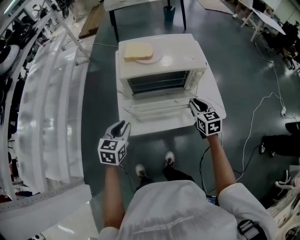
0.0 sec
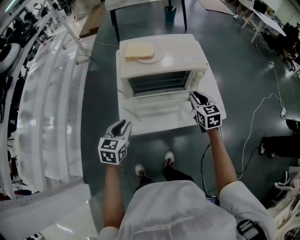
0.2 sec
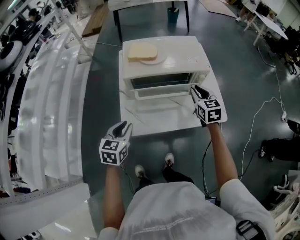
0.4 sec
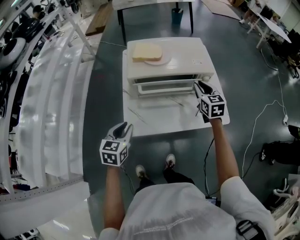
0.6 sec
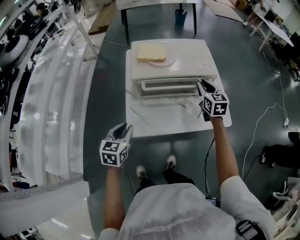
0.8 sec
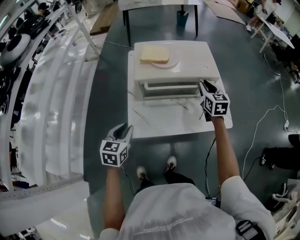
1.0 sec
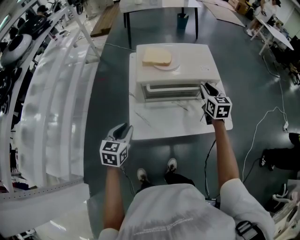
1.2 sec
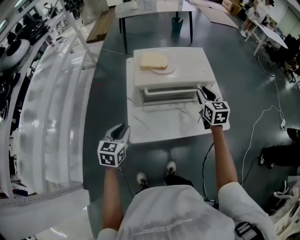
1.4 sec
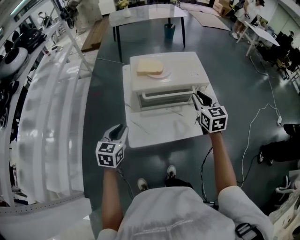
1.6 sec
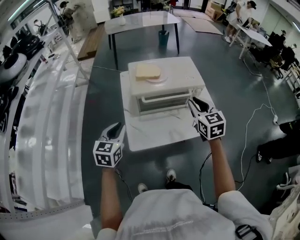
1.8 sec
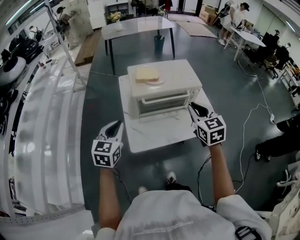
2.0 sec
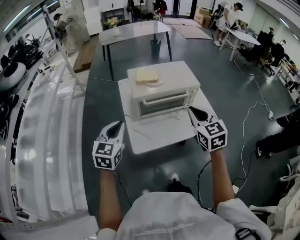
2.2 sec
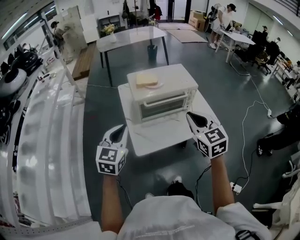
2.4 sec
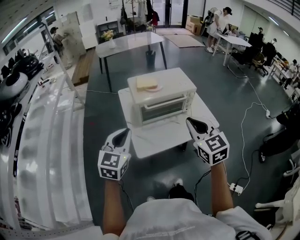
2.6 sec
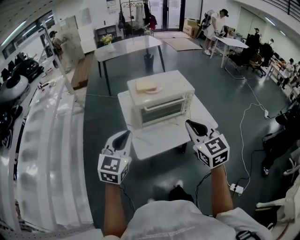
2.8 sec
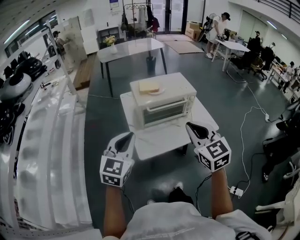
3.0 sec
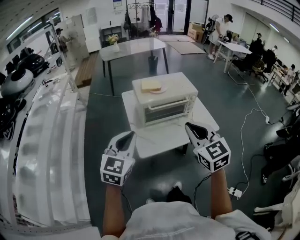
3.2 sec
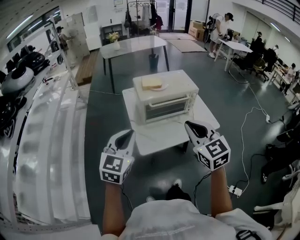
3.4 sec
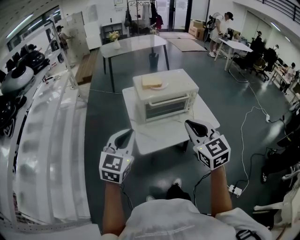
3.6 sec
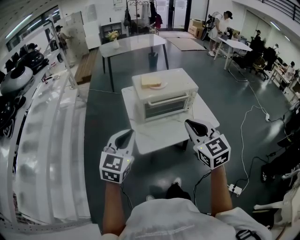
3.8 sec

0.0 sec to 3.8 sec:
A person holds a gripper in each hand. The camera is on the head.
0.0 sec to 1.2 sec: The right gripper heads forward and upward, covering about 15 cm, while the left gripper is displaced to the left by approximately 5 cm.
1.2 sec to 2.6 sec: The left gripper goes about 15 cm upward, and rotates approximately 30 degrees. The right gripper heads backward, upward and to the left, covering some 35 cm.
2.6 sec to 3.8 sec: The left gripper heads backward, covering about 5 cm. The right gripper shifts by some 5 cm.

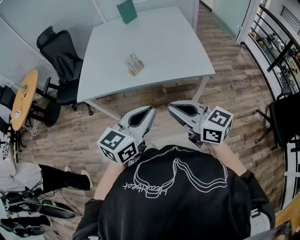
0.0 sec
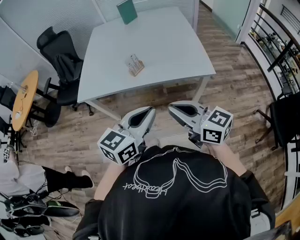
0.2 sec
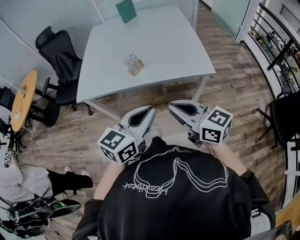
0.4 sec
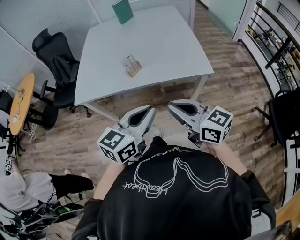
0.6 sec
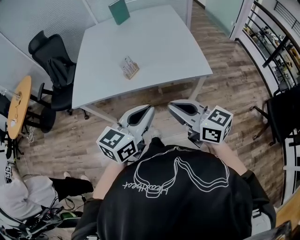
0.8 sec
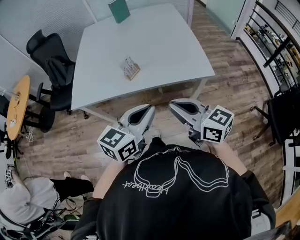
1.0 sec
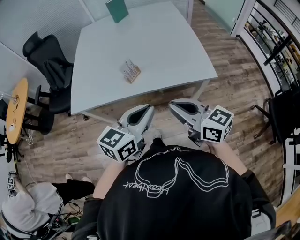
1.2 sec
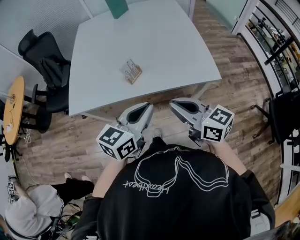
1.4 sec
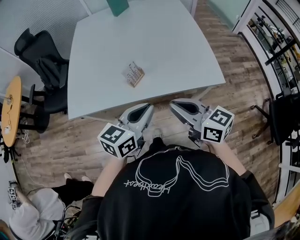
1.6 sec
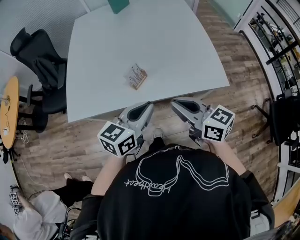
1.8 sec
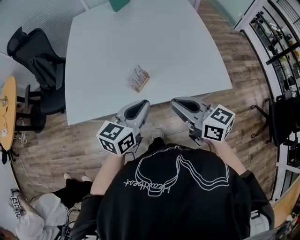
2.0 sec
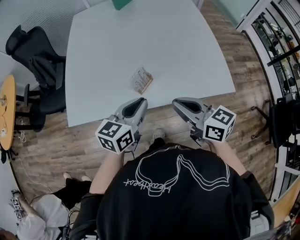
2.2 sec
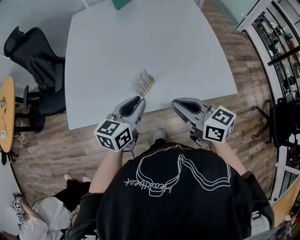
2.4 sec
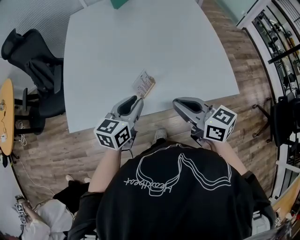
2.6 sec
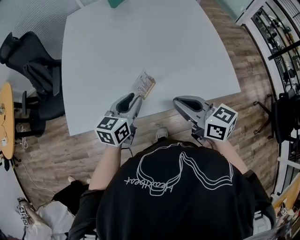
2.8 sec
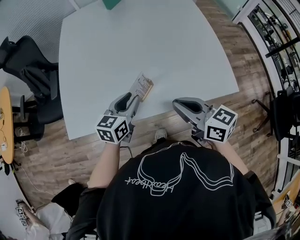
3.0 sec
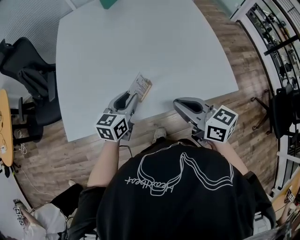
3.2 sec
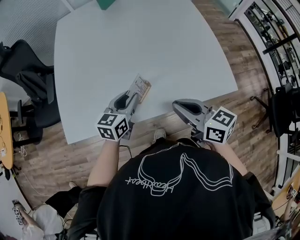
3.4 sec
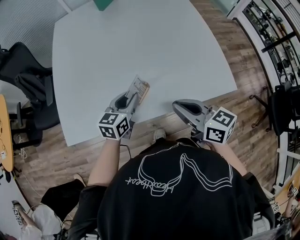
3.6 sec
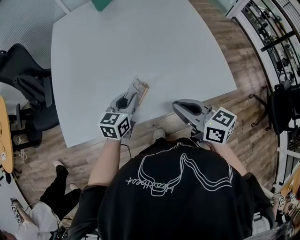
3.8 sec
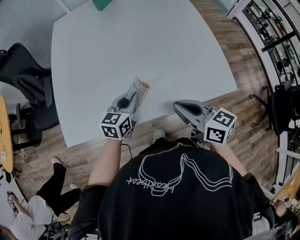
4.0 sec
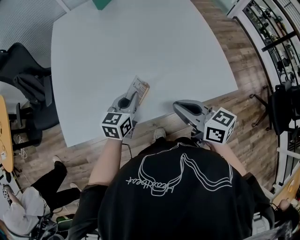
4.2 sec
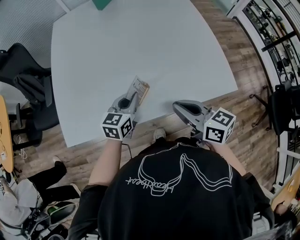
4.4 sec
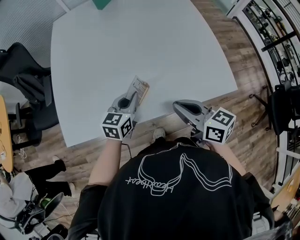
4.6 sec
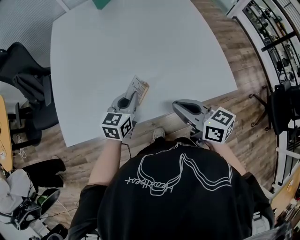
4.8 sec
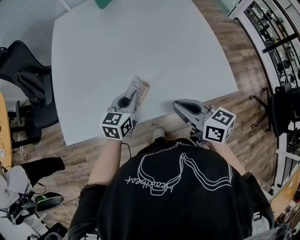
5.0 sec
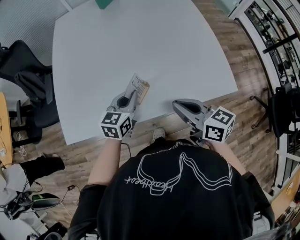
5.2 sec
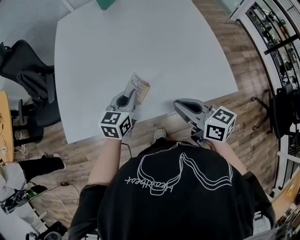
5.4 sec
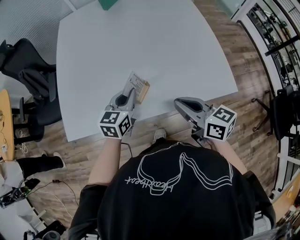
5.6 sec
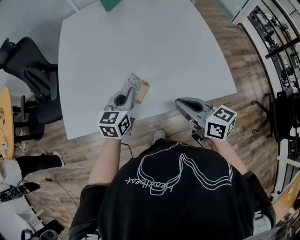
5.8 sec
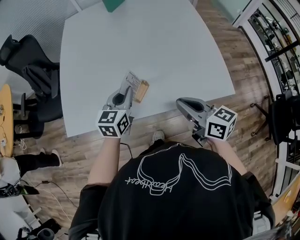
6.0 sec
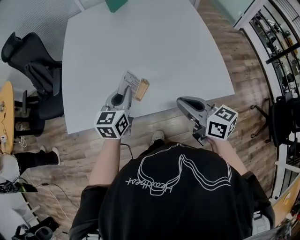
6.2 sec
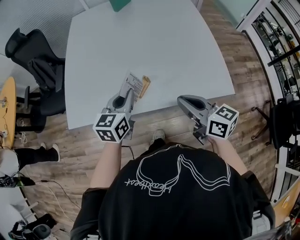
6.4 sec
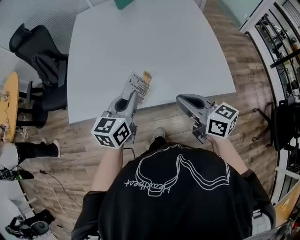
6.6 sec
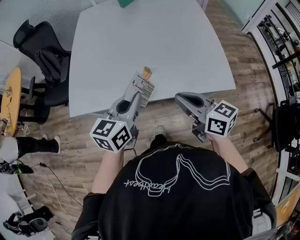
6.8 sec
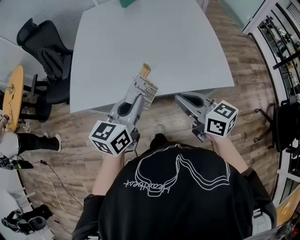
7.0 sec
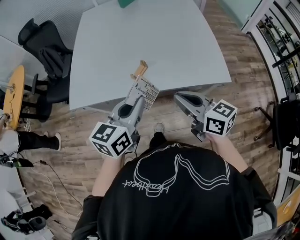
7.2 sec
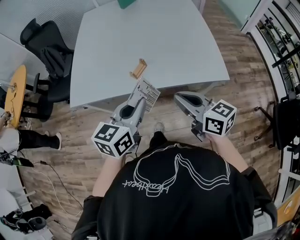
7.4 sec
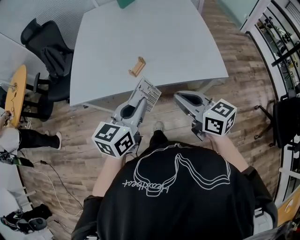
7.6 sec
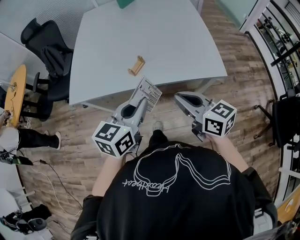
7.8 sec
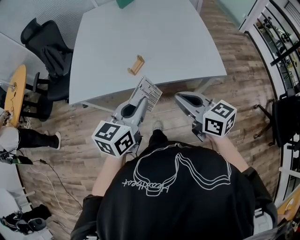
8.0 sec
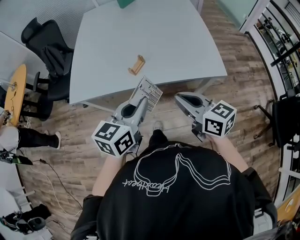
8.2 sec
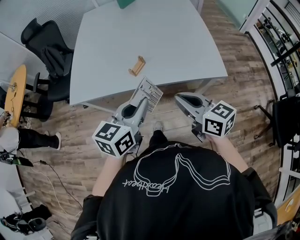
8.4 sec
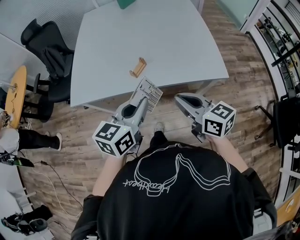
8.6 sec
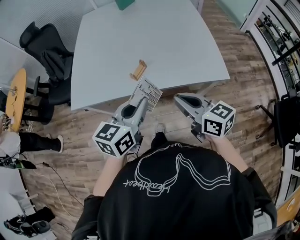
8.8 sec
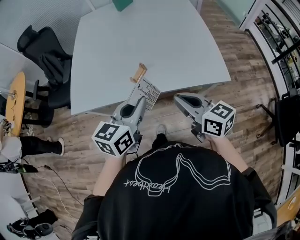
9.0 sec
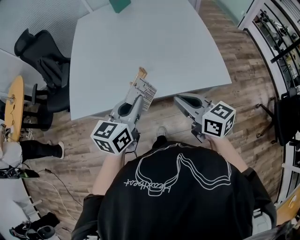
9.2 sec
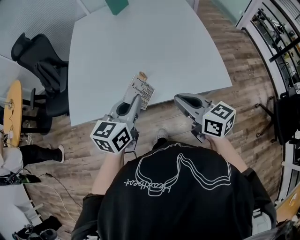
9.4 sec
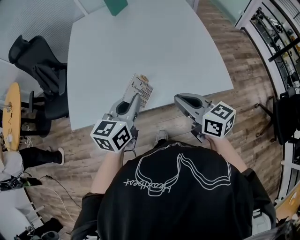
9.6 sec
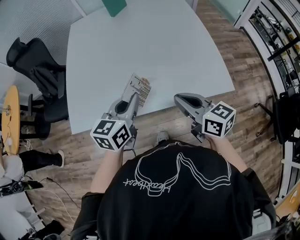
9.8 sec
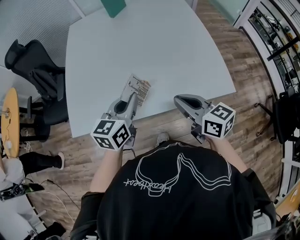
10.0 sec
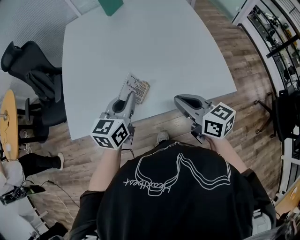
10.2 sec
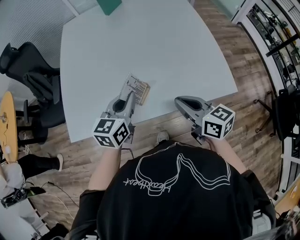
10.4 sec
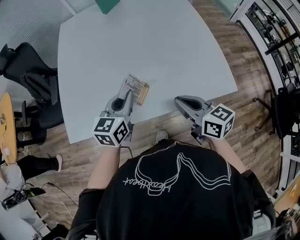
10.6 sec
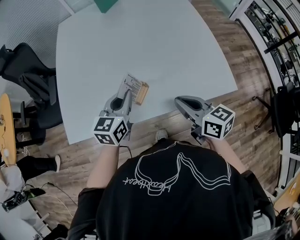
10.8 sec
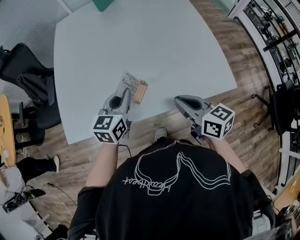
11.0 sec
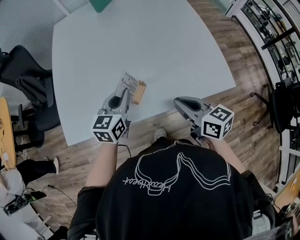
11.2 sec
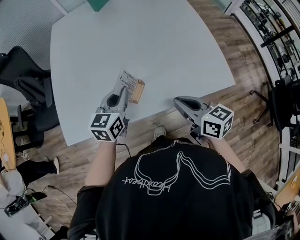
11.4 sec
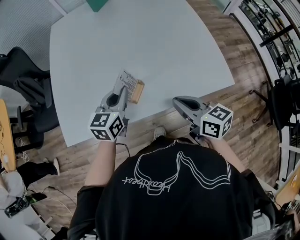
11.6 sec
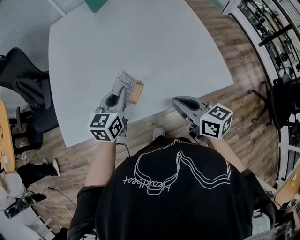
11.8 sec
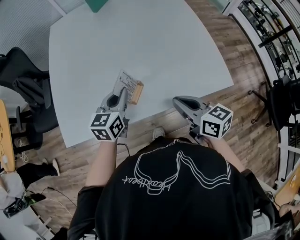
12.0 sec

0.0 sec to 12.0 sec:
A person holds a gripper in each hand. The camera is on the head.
0.0 sec to 1.6 sec: Both grippers move forward, about 20 cm.
1.6 sec to 3.0 sec: The left gripper moves forward, downward and to the left, roughly 25 cm, and opens its fingers, while the right gripper goes some 15 cm forward.
3.0 sec to 4.4 sec: The left gripper ends up about 5 cm from where it was, and closes.
4.4 sec to 6.0 sec: The left gripper shifts approximately 5 cm upward.
6.0 sec to 7.6 sec: The left gripper moves backward, roughly 25 cm. Meanwhile the right gripper goes about 15 cm backward.
7.6 sec to 9.0 sec: The left gripper shifts approximately 5 cm forward.
9.0 sec to 10.4 sec: The two grippers go some 15 cm forward.
10.4 sec to 12.0 sec: The left gripper moves roughly 5 cm.

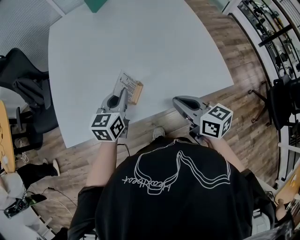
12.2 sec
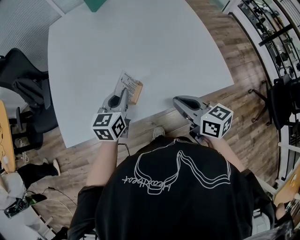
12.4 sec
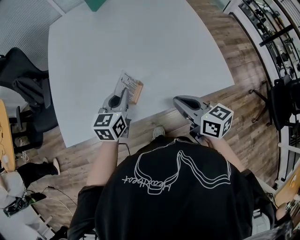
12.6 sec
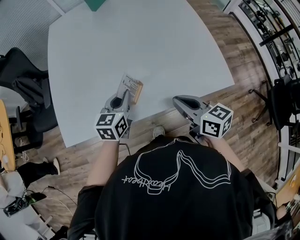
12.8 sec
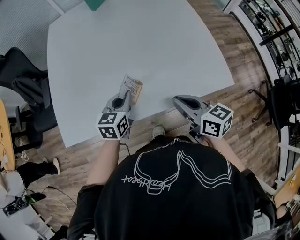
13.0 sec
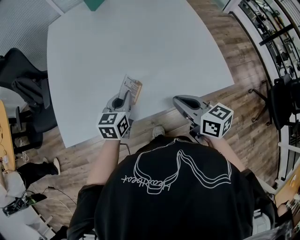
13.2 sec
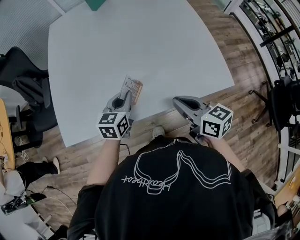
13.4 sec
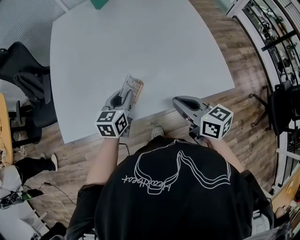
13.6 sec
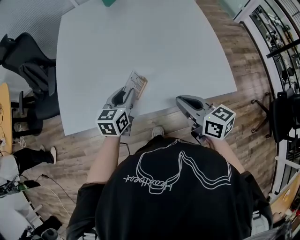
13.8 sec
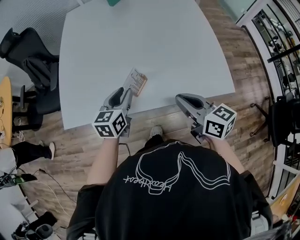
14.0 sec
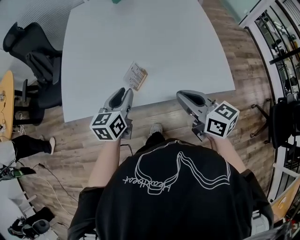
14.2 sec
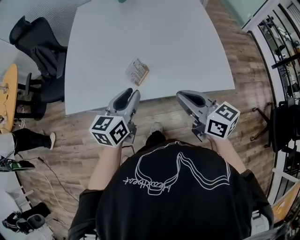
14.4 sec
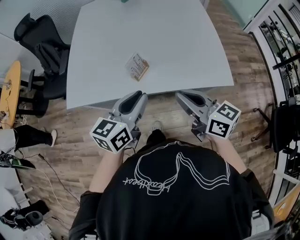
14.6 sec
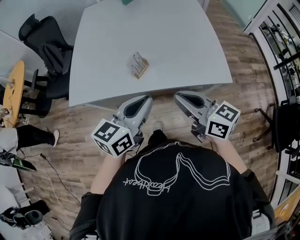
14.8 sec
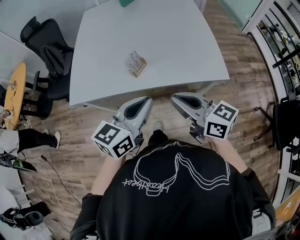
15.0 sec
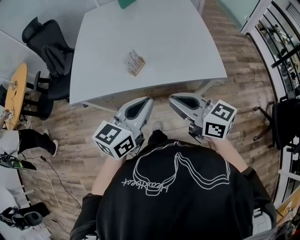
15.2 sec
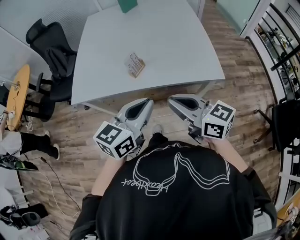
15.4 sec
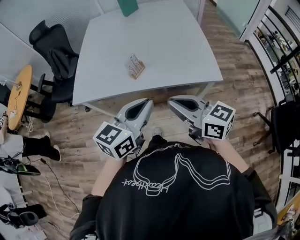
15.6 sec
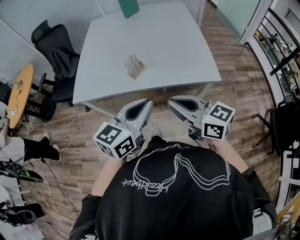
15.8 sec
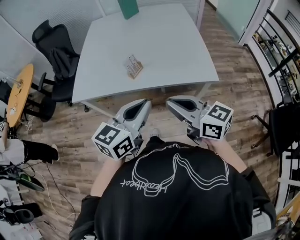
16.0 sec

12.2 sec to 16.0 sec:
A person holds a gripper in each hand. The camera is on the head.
12.2 sec to 13.4 sec: There are only small adjustments of the grippers.
13.4 sec to 14.8 sec: The right gripper shifts about 15 cm backward and upward, and changes its angle by some 20 degrees; the left gripper goes about 30 cm backward and upward, and opens, then closes once more.
14.8 sec to 16.0 sec: The right gripper heads backward, covering some 10 cm. Meanwhile the left gripper shifts some 10 cm backward and upward.

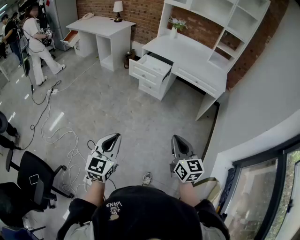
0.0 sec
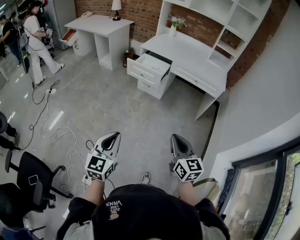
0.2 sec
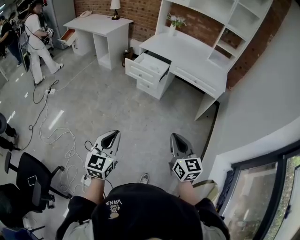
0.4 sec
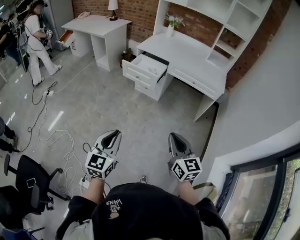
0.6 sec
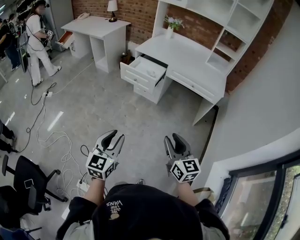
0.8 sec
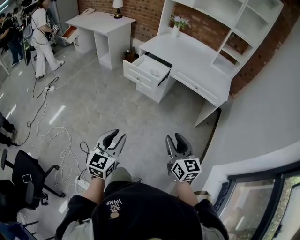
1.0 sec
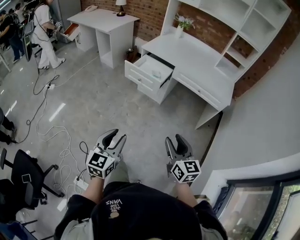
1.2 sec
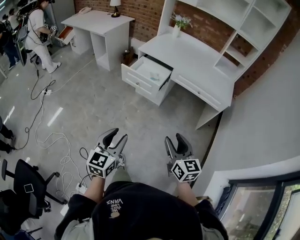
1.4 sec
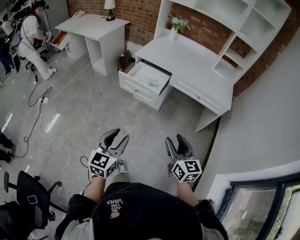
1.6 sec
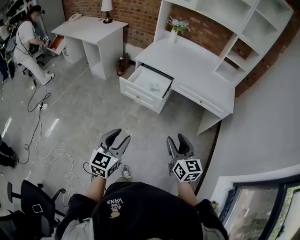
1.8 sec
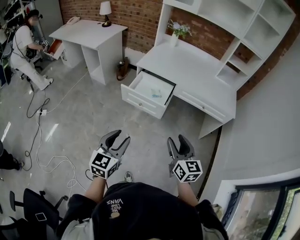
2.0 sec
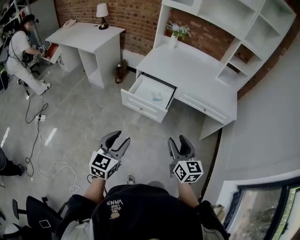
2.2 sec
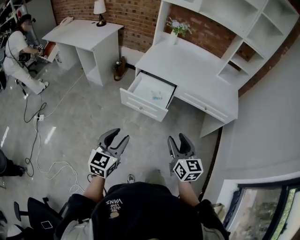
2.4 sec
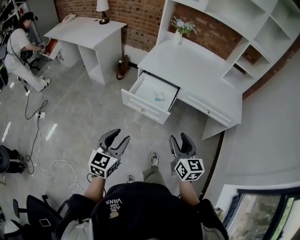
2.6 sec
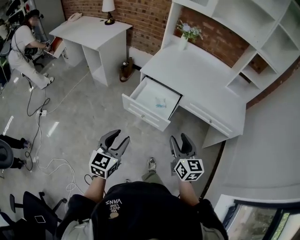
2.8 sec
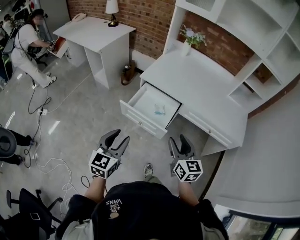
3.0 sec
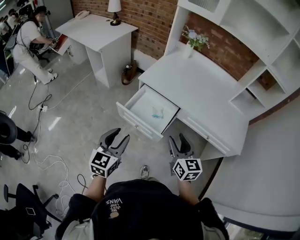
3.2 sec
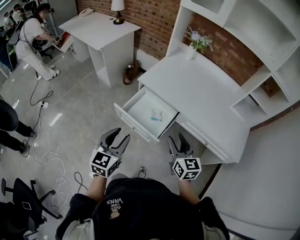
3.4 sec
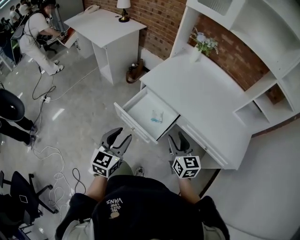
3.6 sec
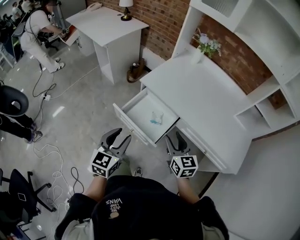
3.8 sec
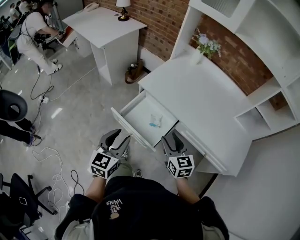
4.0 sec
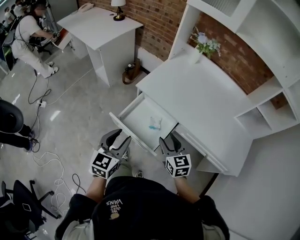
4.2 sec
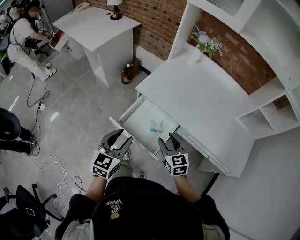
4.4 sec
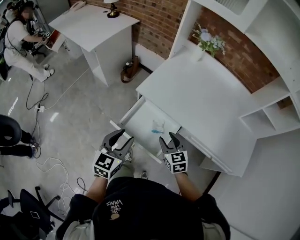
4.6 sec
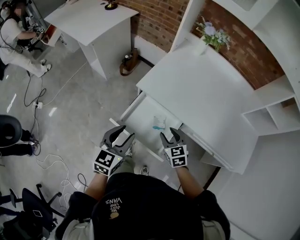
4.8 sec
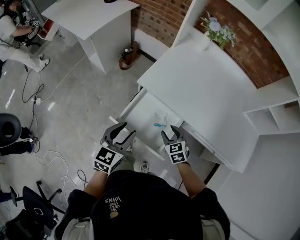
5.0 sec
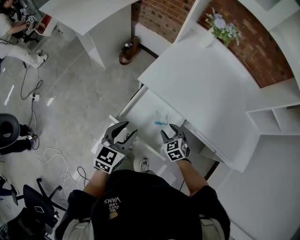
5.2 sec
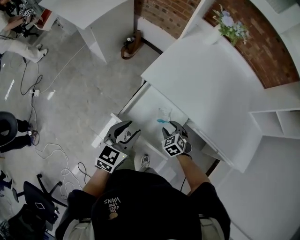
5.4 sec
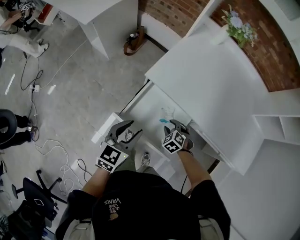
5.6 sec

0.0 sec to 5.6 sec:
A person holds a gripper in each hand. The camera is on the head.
0.0 sec to 1.4 sec: Both grippers move forward, about 25 cm. The right gripper opens up; the left gripper opens its fingers.
1.4 sec to 2.8 sec: Both grippers travel together forward, roughly 30 cm.
2.8 sec to 4.2 sec: The left gripper moves forward and to the right, roughly 25 cm. The right gripper goes some 25 cm forward, and swivels about 20 degrees.
4.2 sec to 5.6 sec: The right gripper goes about 30 cm downward and forward, and points its fingers roughly 40 degrees further downward. Meanwhile the left gripper shifts roughly 15 cm forward and downward.
